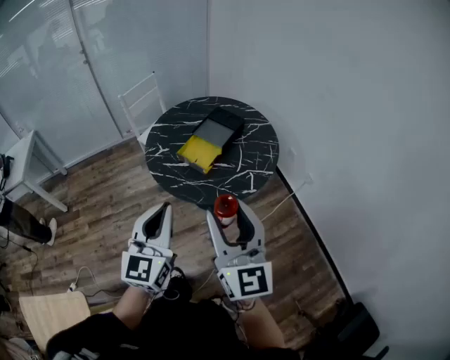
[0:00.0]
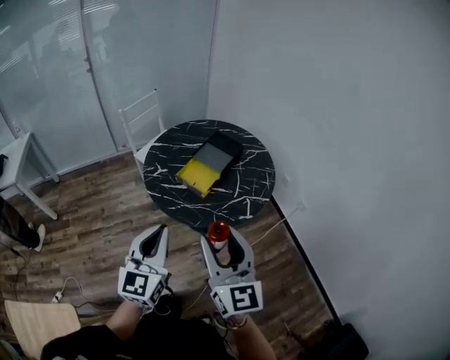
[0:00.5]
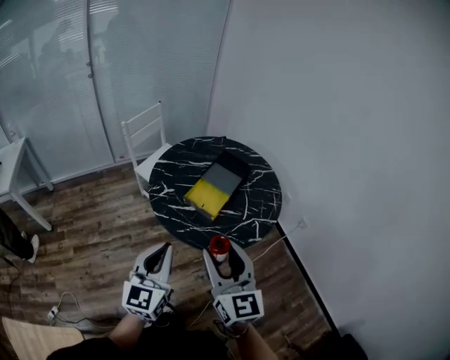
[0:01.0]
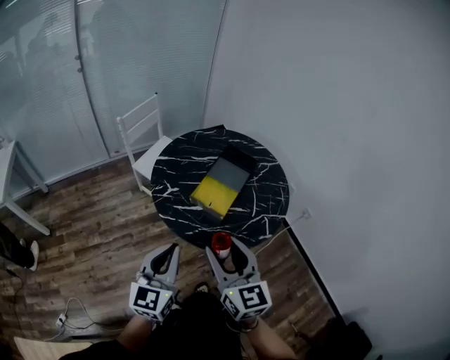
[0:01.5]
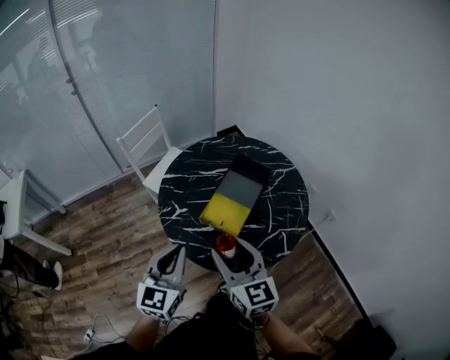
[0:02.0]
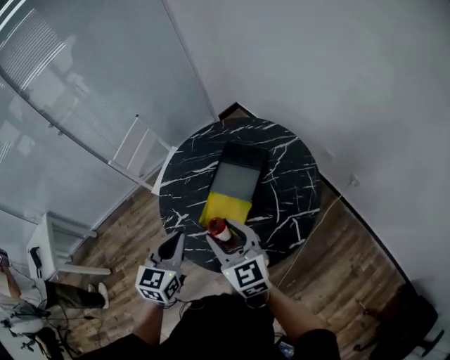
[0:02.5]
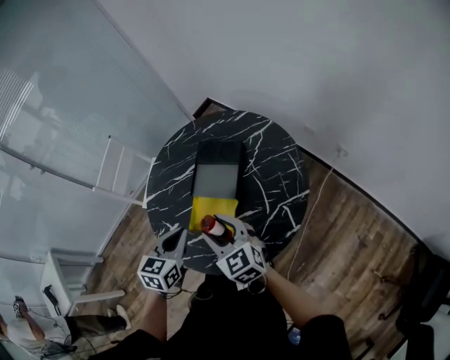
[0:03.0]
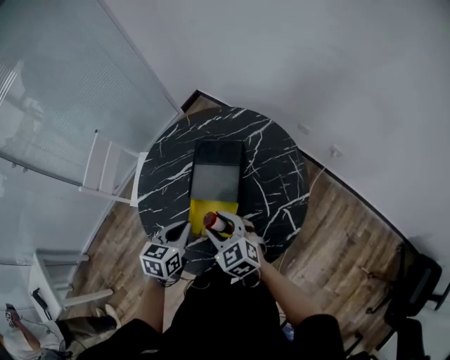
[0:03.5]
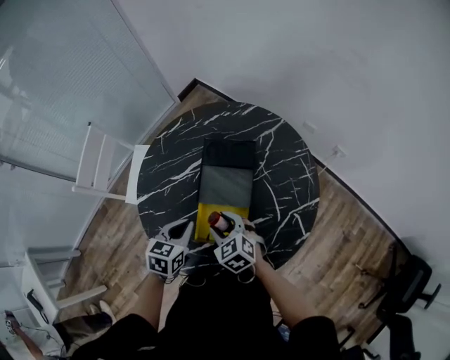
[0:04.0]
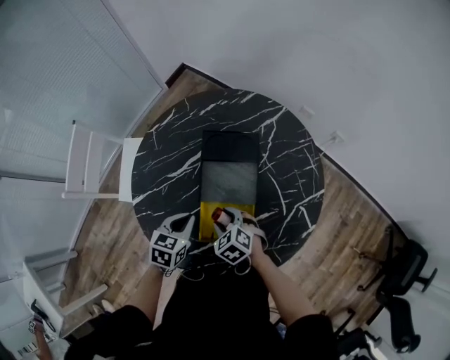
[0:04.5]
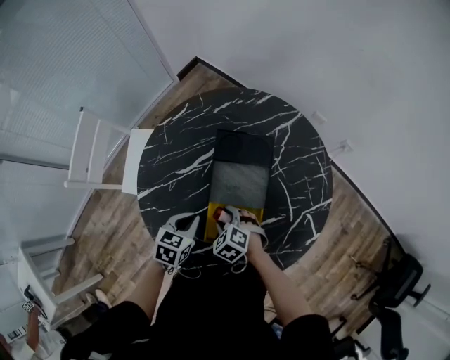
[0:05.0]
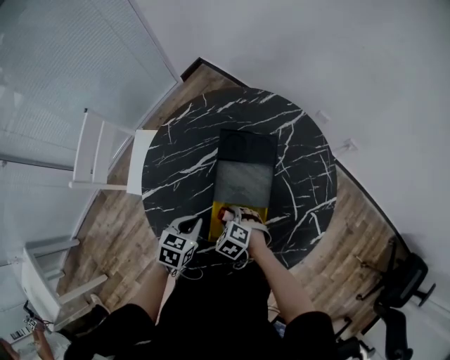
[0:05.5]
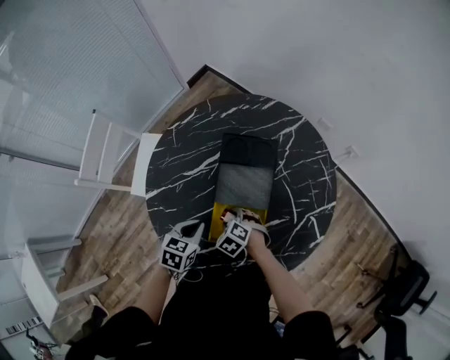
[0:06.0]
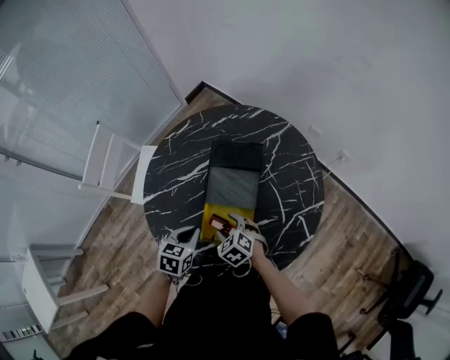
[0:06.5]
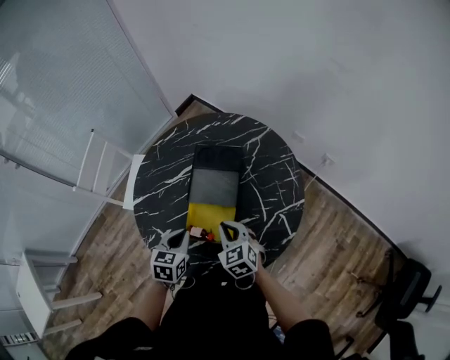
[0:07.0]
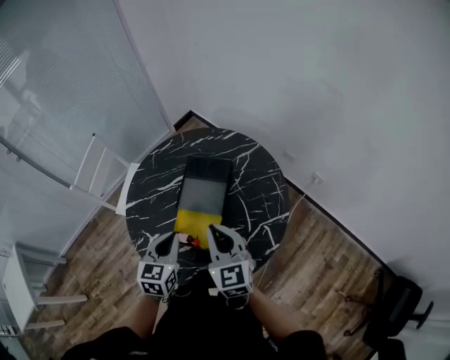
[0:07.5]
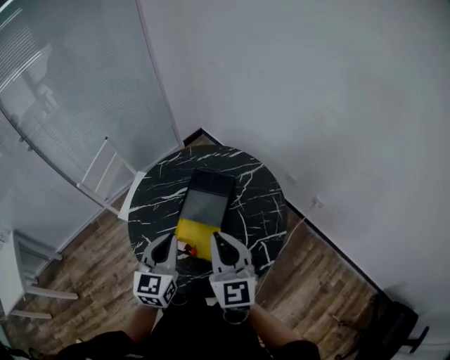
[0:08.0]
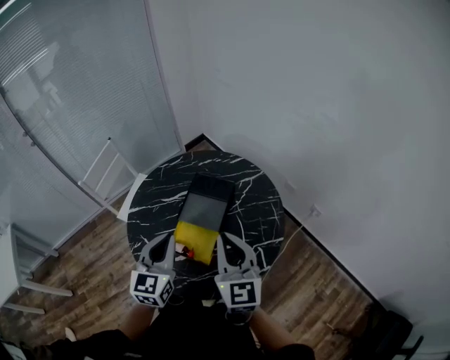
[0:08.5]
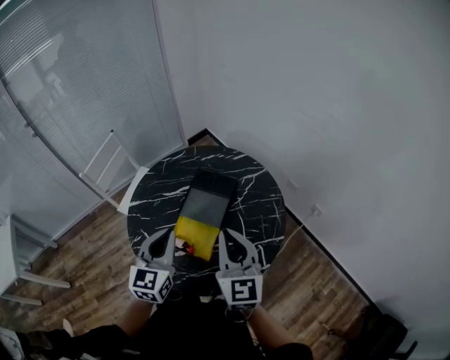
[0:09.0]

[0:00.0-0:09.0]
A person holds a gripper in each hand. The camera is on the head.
0:00.0 to 0:02.0: The right gripper heads forward, to the left and downward, covering approximately 30 cm, and swivels roughly 20 degrees. Meanwhile the left gripper heads forward and to the left, covering roughly 25 cm.
0:02.0 to 0:04.5: The right gripper is displaced downward and forward by about 40 cm, and tips its fingers downward by some 50 degrees, while the left gripper moves forward and downward, roughly 40 cm, and tilts its fingers roughly 40 degrees downward.
0:04.5 to 0:07.0: The left gripper goes some 10 cm backward and upward. The right gripper shifts approximately 10 cm upward and to the right, swivels approximately 20 degrees, and closes its fingers.
0:07.0 to 0:09.0: The two grippers go some 20 cm upward. The left gripper angles its fingers upward, by approximately 30 degrees. Meanwhile the right gripper angles its fingers upward, by roughly 30 degrees.

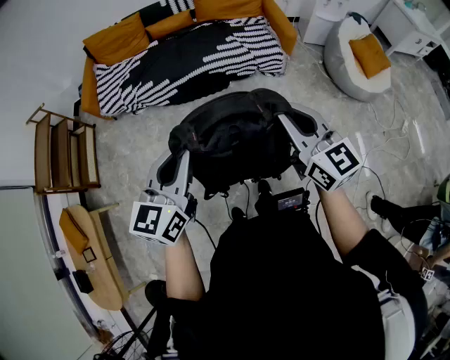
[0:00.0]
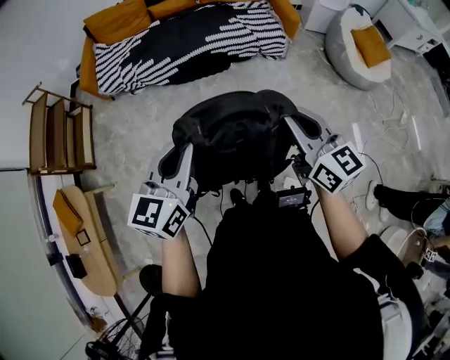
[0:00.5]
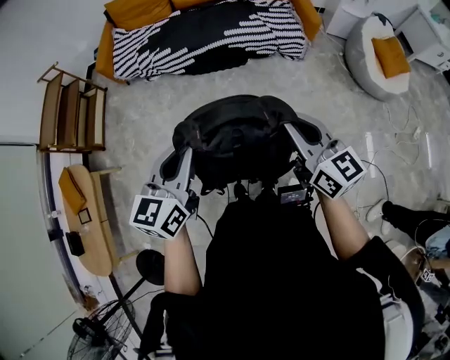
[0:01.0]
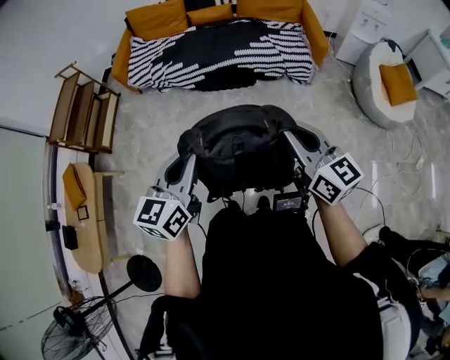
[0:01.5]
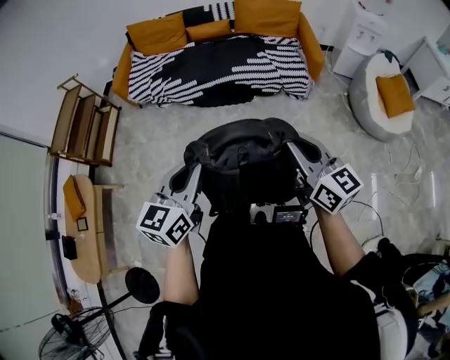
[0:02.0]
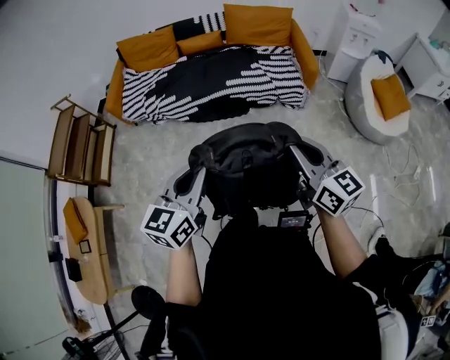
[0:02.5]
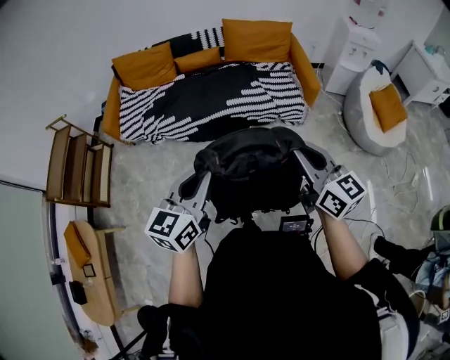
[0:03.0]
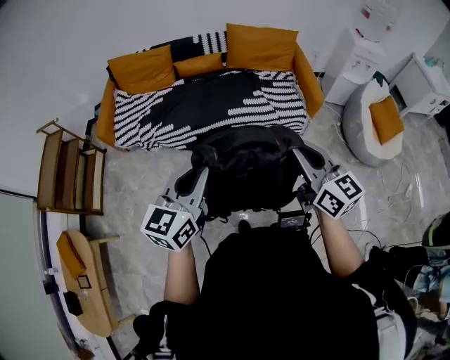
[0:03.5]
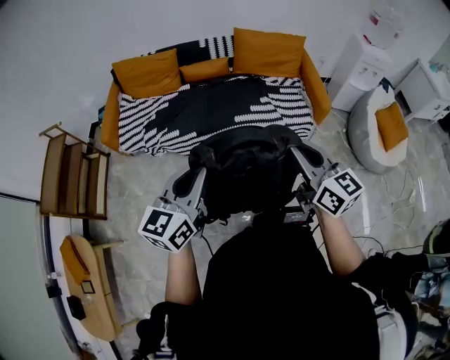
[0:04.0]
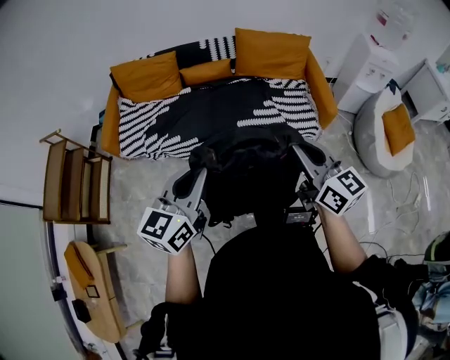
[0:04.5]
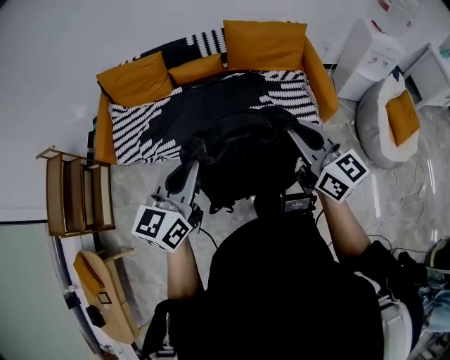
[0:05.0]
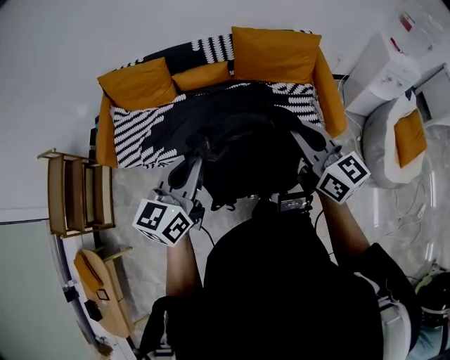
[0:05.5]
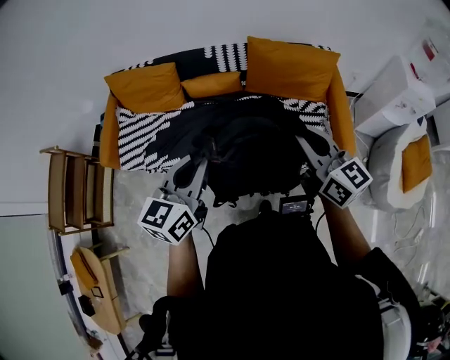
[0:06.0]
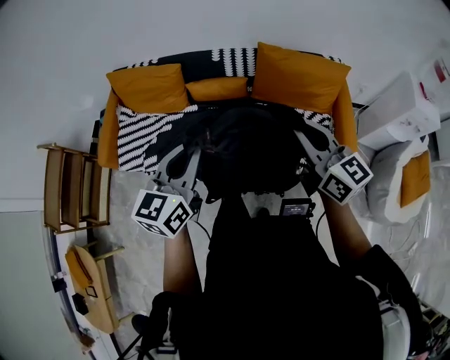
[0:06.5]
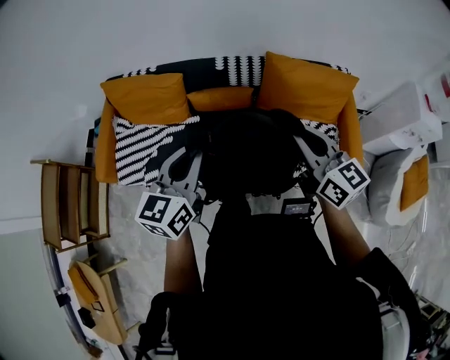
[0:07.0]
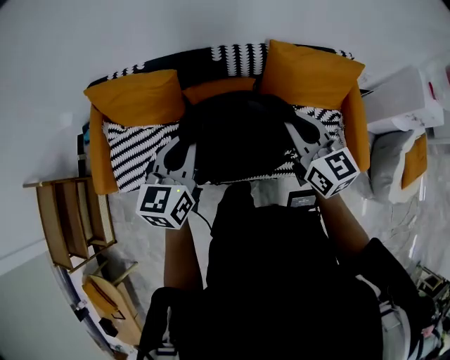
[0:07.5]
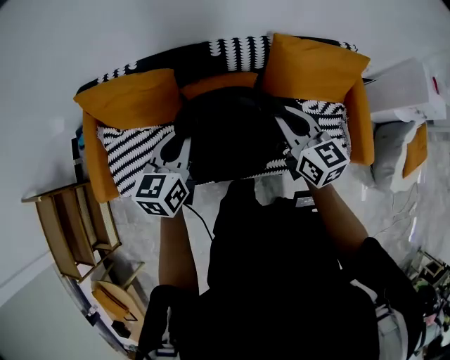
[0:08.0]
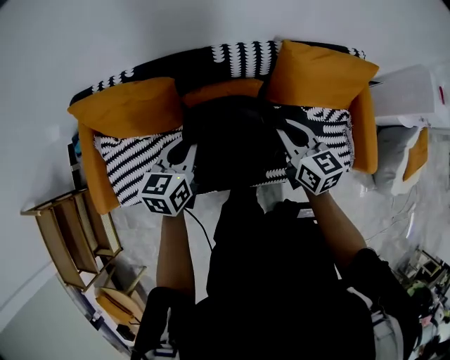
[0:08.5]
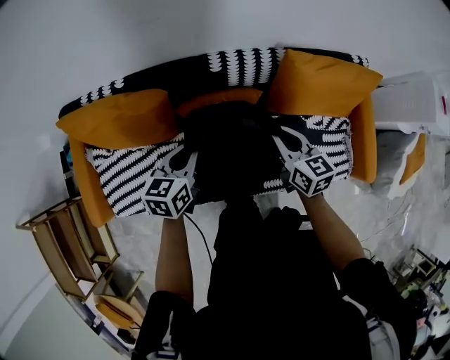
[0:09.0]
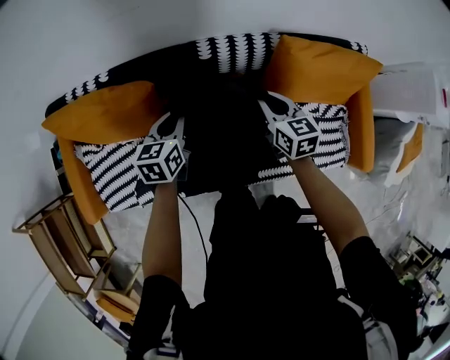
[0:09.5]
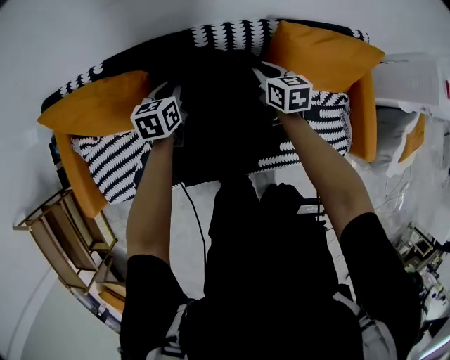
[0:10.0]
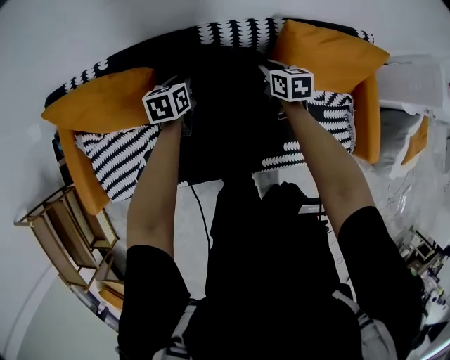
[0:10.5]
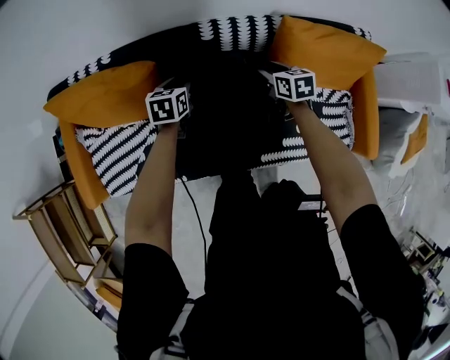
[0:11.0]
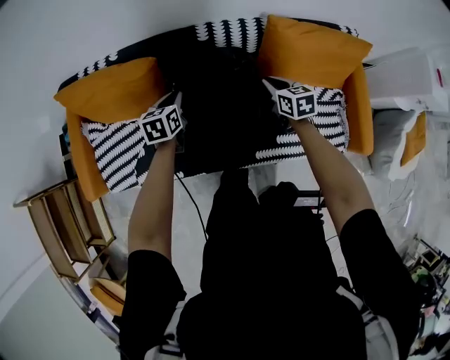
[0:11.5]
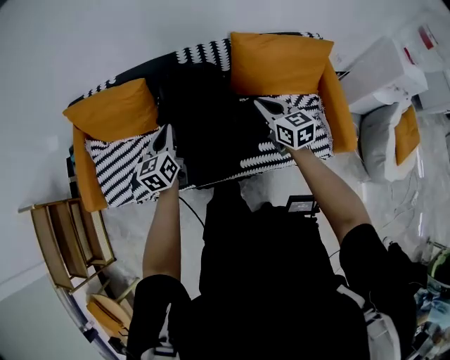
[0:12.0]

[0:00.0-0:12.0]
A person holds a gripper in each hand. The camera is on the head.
0:00.0 to 0:02.0: The left gripper travels backward by roughly 5 cm.
0:02.0 to 0:04.0: The two grippers go some 30 cm forward.
0:04.0 to 0:06.0: Both grippers travel together forward, about 35 cm.
0:06.0 to 0:08.0: The right gripper heads forward, to the left and downward, covering roughly 35 cm. The left gripper goes roughly 35 cm forward and to the left.
0:08.0 to 0:10.0: The two grippers go about 30 cm downward and forward. The right gripper rotates approximately 20 degrees.
0:10.0 to 0:12.0: The two grippers go approximately 25 cm backward and upward. The left gripper rotates some 20 degrees, and opens and closes again. The right gripper opens and closes again.

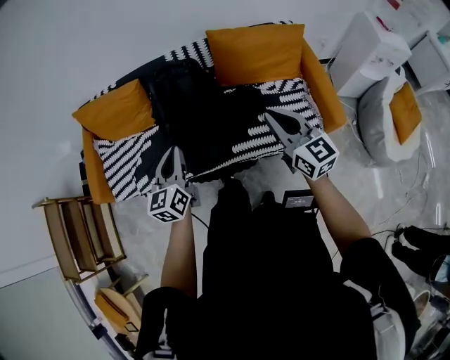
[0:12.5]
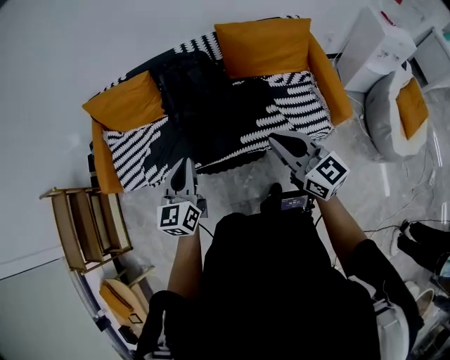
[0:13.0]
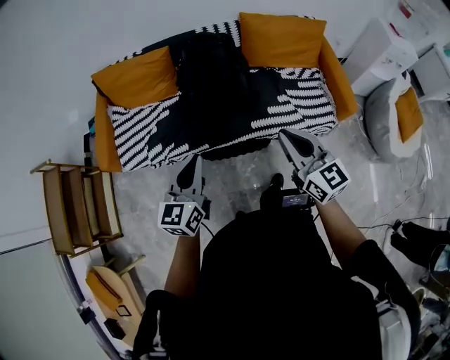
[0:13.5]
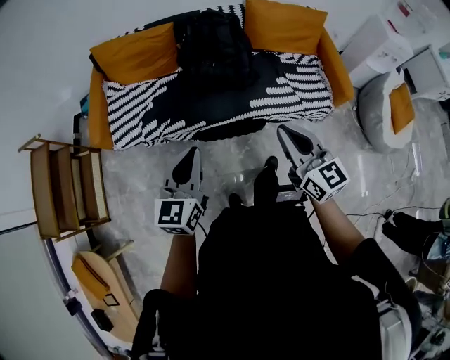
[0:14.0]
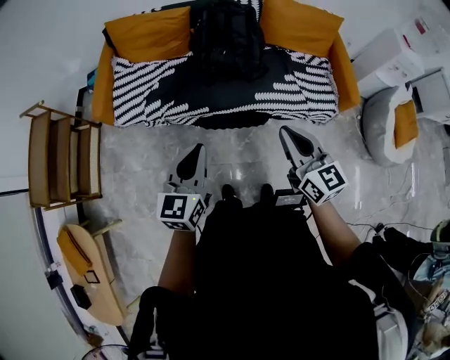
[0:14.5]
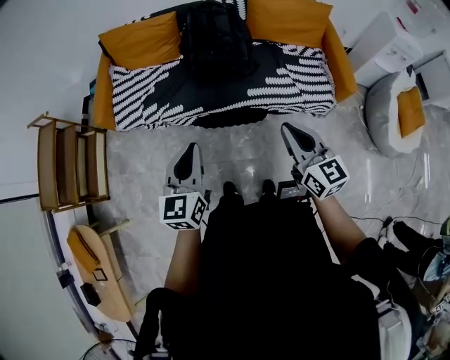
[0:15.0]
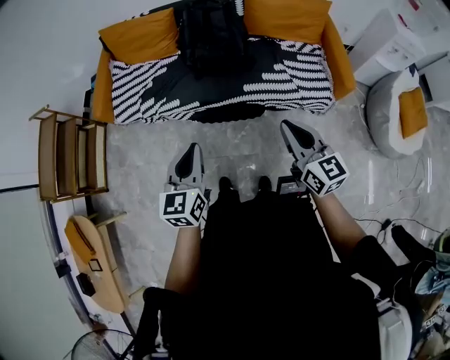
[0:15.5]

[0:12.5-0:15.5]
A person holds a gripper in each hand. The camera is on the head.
0:12.5 to 0:14.0: Both grippers move backward and to the left, approximately 30 cm.
0:14.0 to 0:15.5: Both grippers move to the right and backward, roughly 15 cm.

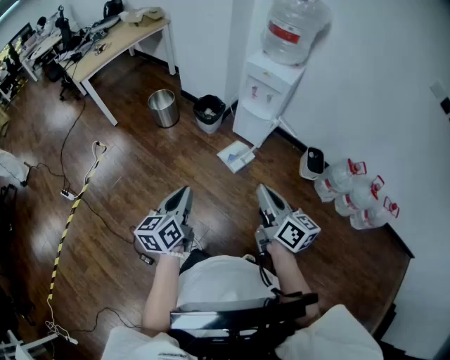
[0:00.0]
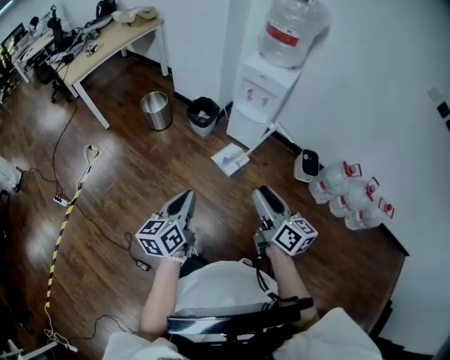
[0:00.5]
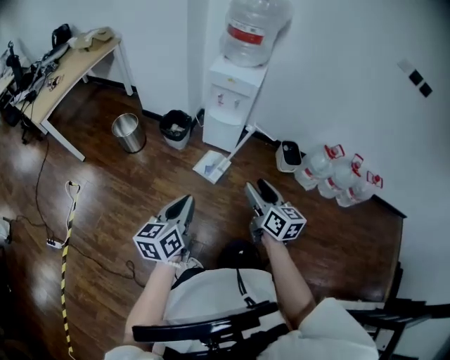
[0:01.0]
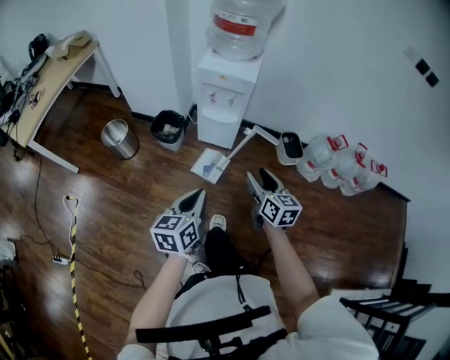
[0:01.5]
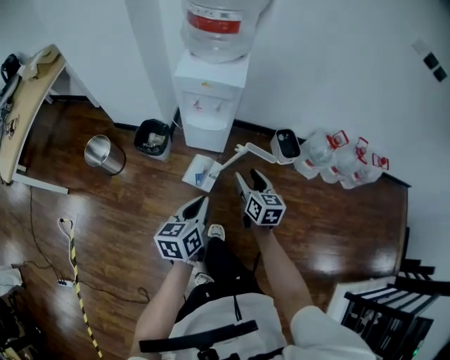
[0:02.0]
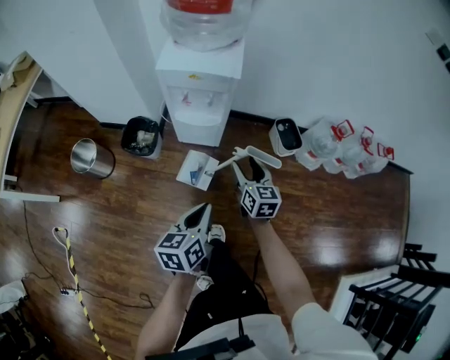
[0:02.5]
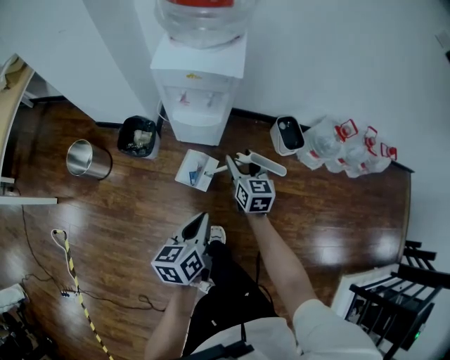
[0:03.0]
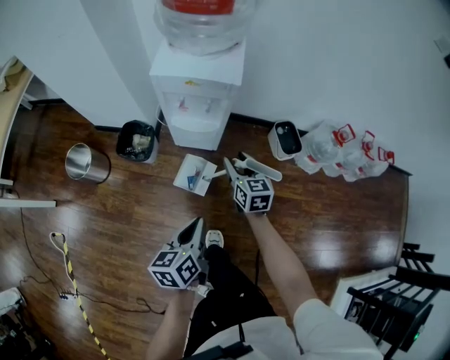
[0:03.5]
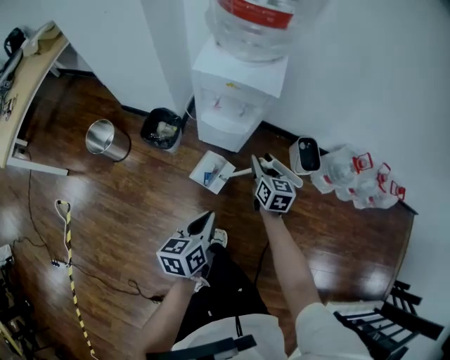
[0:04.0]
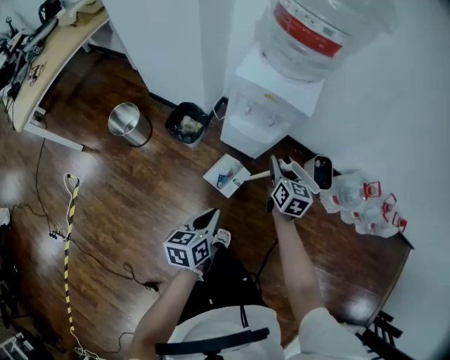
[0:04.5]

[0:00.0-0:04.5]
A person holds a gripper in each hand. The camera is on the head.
0:00.0 to 0:02.0: The left gripper moves roughly 35 cm, and changes its angle by about 30 degrees. Meanwhile the right gripper changes place by roughly 40 cm, turns by about 40 degrees, and opens up.
0:02.0 to 0:04.5: The right gripper is displaced forward by roughly 20 cm. The left gripper travels downward, to the left and forward by some 15 cm.
